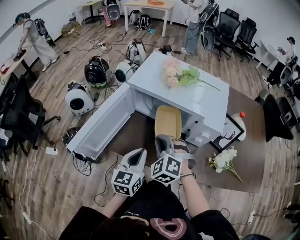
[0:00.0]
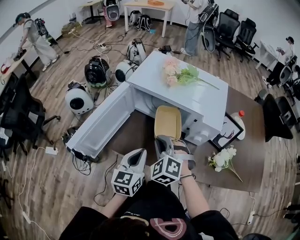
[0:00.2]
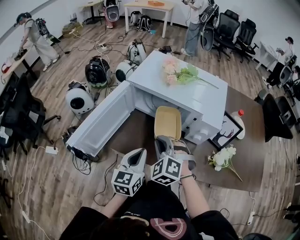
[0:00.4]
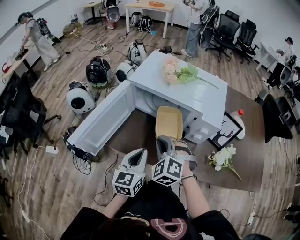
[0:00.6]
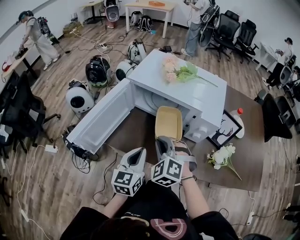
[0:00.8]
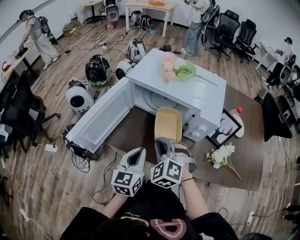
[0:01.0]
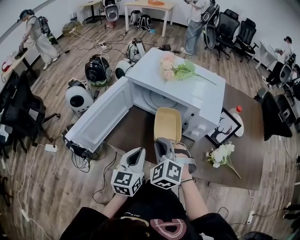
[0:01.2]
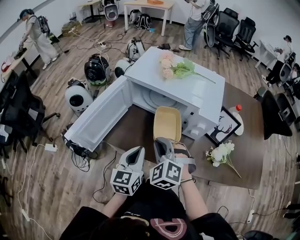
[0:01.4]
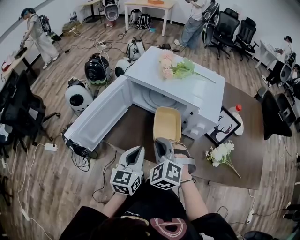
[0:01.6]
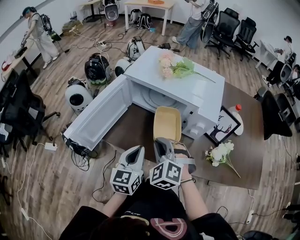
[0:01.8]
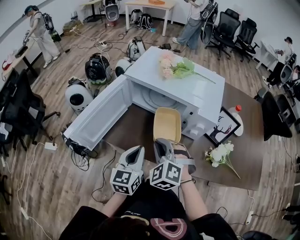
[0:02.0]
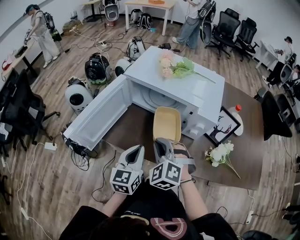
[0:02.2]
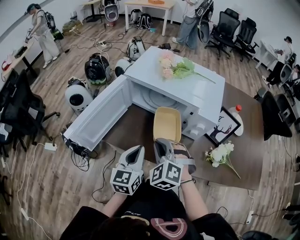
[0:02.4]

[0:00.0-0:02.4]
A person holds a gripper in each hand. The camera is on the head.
0:00.0 to 0:01.2: The right gripper goes roughly 5 cm backward.
0:01.2 to 0:02.4: The two grippers keep their place.

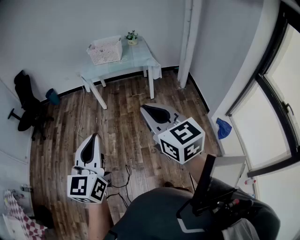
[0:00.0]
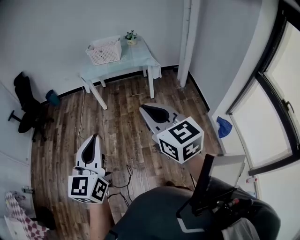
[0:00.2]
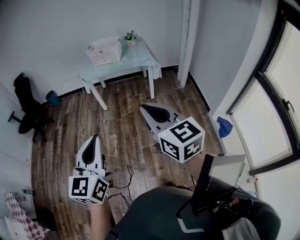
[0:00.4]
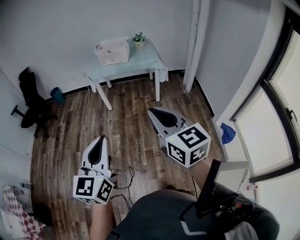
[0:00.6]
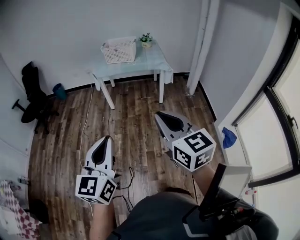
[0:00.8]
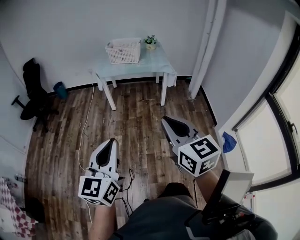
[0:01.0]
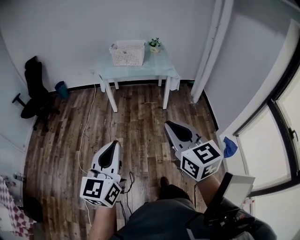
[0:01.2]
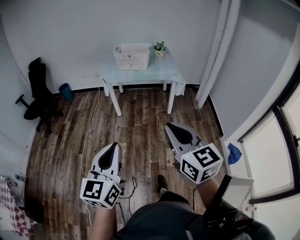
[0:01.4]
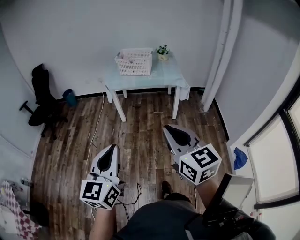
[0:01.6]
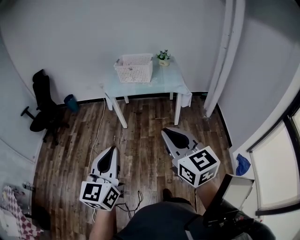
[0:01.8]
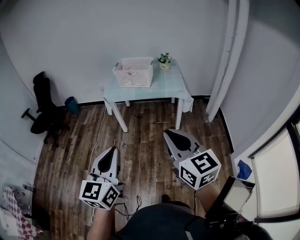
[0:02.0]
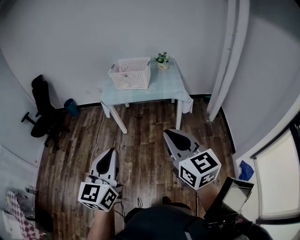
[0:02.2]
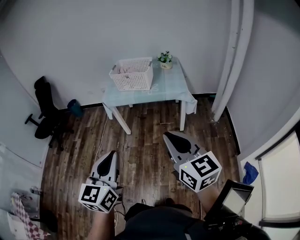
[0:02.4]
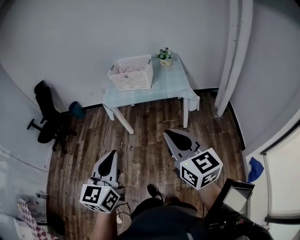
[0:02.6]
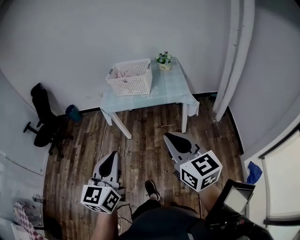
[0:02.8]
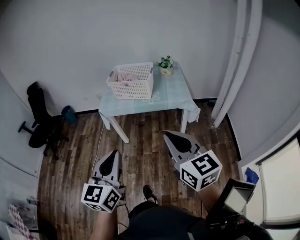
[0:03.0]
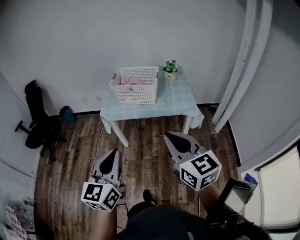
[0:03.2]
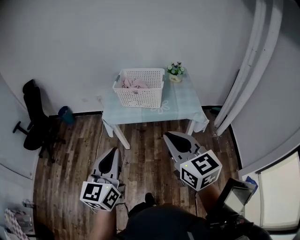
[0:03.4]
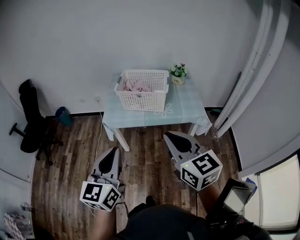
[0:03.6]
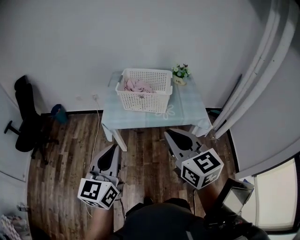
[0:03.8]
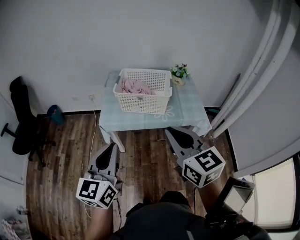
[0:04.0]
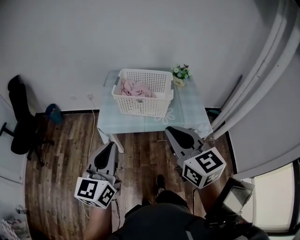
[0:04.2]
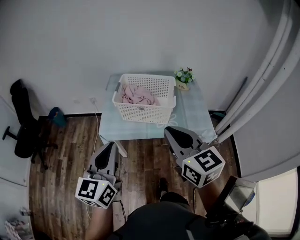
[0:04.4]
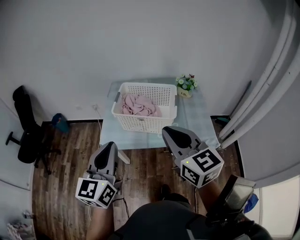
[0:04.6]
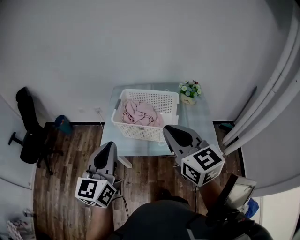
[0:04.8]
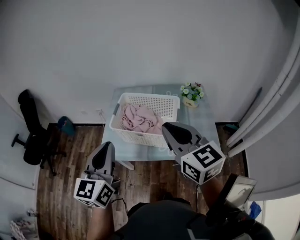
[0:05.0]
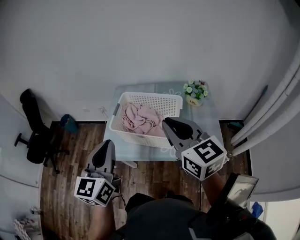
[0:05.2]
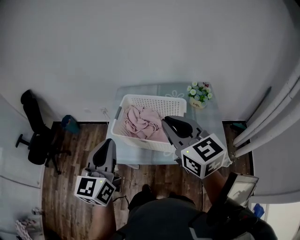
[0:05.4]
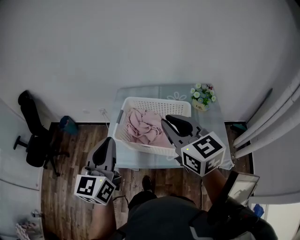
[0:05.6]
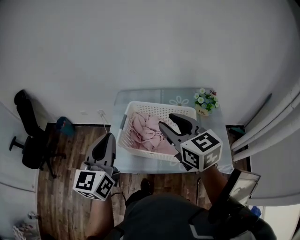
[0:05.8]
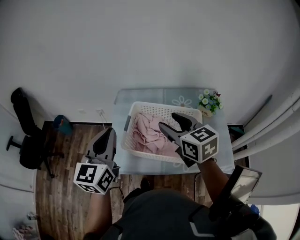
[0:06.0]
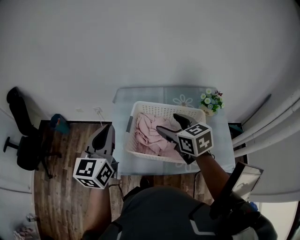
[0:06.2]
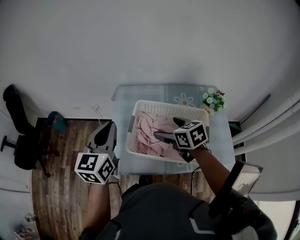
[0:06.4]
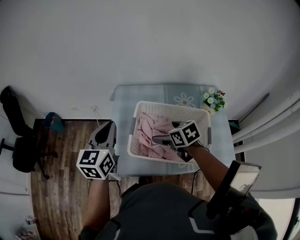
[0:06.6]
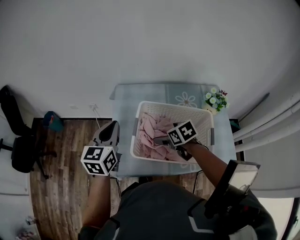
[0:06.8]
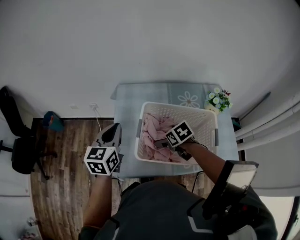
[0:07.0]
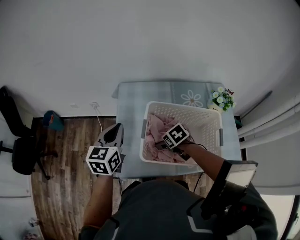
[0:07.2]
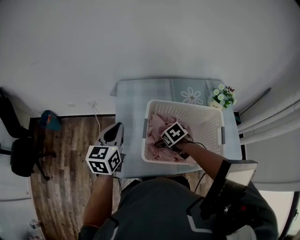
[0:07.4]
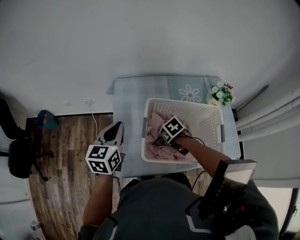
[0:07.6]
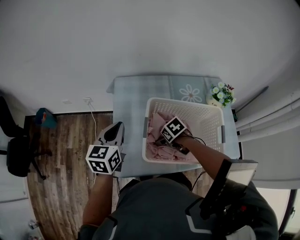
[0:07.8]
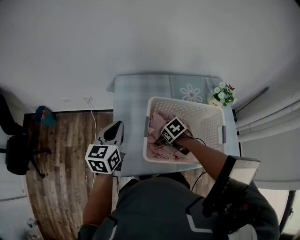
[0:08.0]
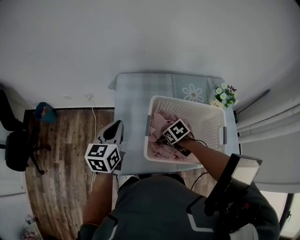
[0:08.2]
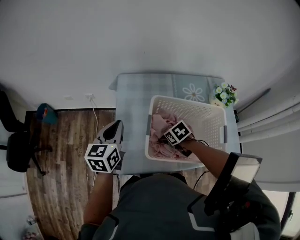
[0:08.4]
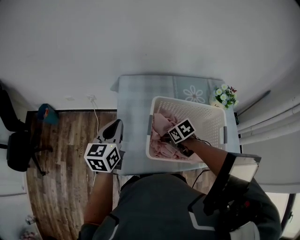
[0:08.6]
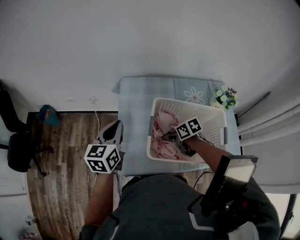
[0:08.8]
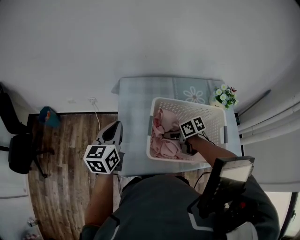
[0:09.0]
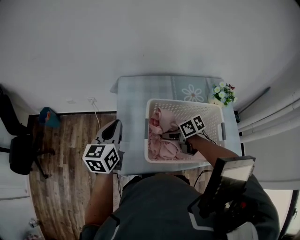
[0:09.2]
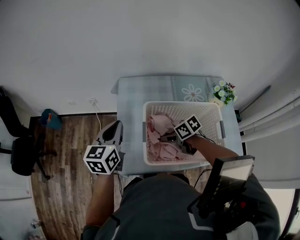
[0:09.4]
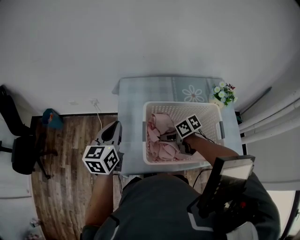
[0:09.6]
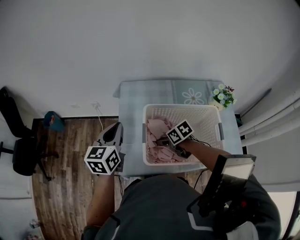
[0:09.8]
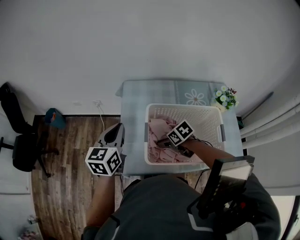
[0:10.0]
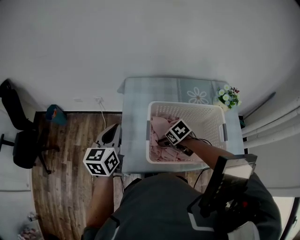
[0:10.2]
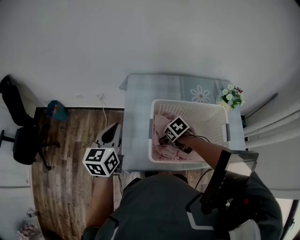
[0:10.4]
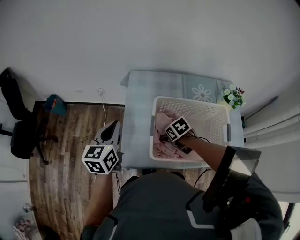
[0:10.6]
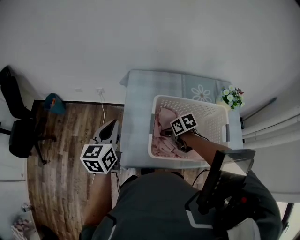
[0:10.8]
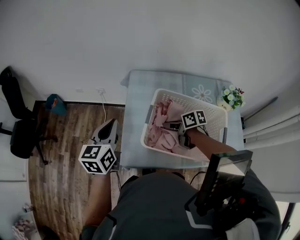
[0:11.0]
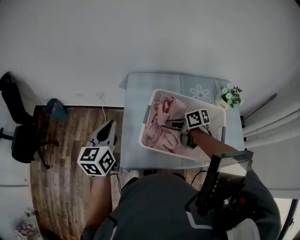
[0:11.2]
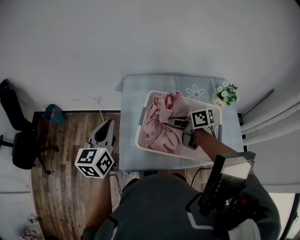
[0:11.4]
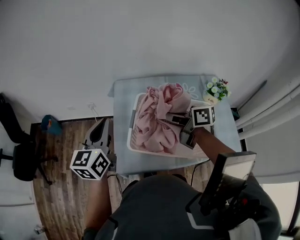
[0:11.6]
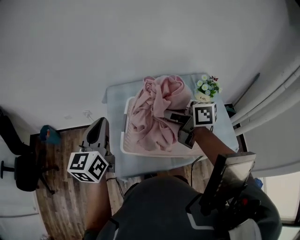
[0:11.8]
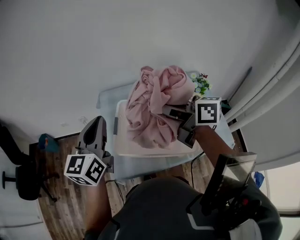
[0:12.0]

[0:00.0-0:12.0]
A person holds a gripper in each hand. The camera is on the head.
0:00.0 to 0:01.6: Both grippers move forward and to the left, roughly 15 cm.
0:01.6 to 0:03.0: Both grippers move forward, approximately 30 cm.
0:03.0 to 0:04.4: Both grippers move forward, roughly 35 cm.
0:04.4 to 0:06.0: The two grippers go about 35 cm forward. The right gripper opens up.
0:06.0 to 0:07.6: The right gripper is displaced downward by about 30 cm, tips its fingers downward by some 50 degrees, and opens. Meanwhile the left gripper travels downward and forward by approximately 25 cm, and rotates roughly 20 degrees.
0:07.6 to 0:09.0: The right gripper angles its fingers upward, by some 30 degrees, and closes.
0:09.0 to 0:10.4: The right gripper ends up approximately 5 cm from where it was, swivels approximately 40 degrees, and opens.
0:10.4 to 0:12.0: The right gripper heads upward, covering some 35 cm, tips its fingers upward by some 70 degrees, and closes up. The left gripper goes approximately 15 cm upward and to the right.

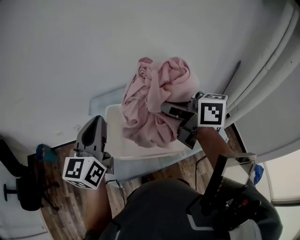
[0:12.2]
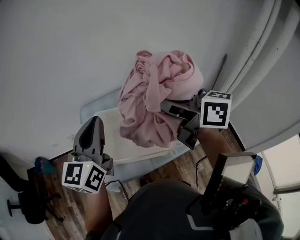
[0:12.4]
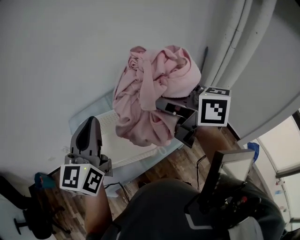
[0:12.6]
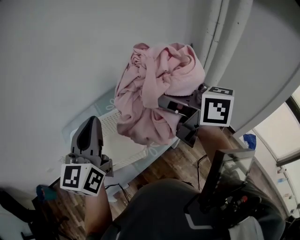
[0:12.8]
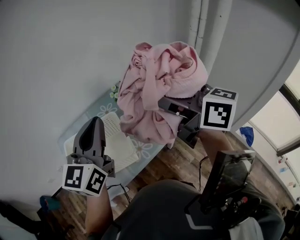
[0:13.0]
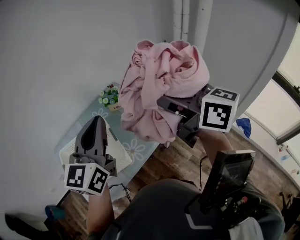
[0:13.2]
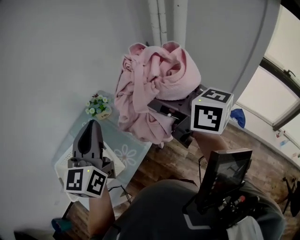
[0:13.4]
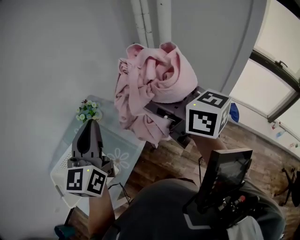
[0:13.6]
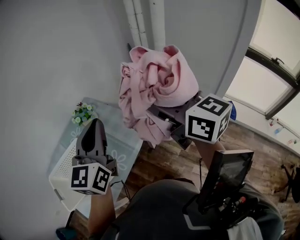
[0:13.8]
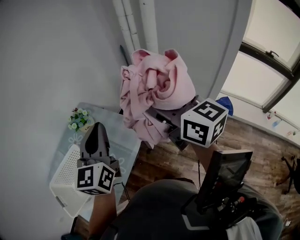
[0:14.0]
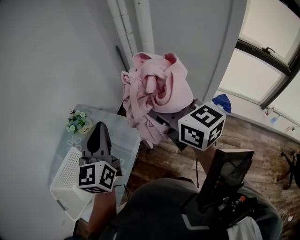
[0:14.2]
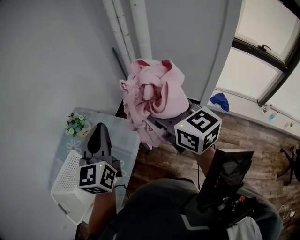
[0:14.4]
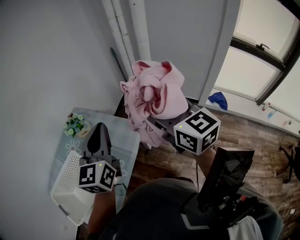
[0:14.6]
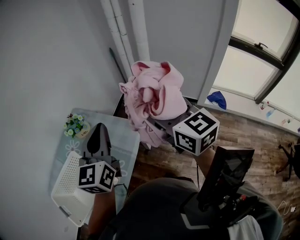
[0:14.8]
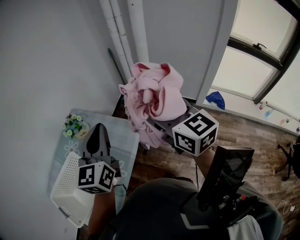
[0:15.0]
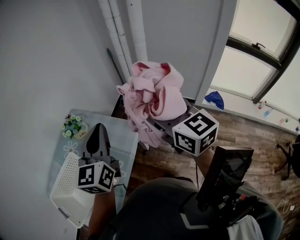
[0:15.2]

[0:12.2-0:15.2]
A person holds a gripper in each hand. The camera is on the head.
0:12.2 to 0:13.8: The right gripper goes downward and returns, about 15 cm each way, and swivels some 40 degrees; the left gripper travels downward and back again, some 15 cm each way, and changes its angle by about 20 degrees.
0:13.8 to 0:15.2: The left gripper changes place by roughly 5 cm. Meanwhile the right gripper heads downward, covering approximately 5 cm.

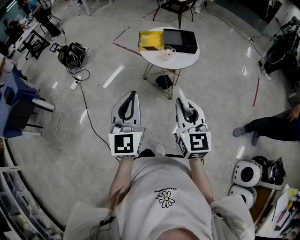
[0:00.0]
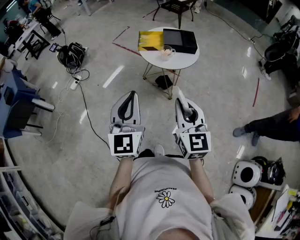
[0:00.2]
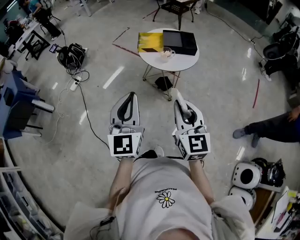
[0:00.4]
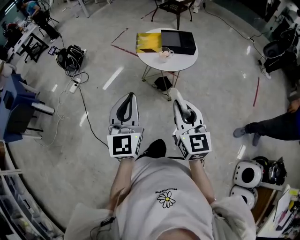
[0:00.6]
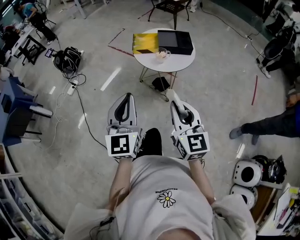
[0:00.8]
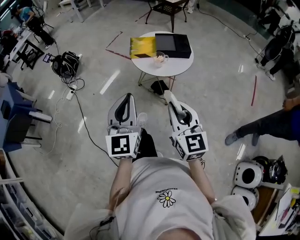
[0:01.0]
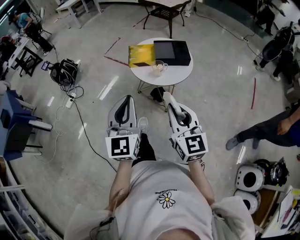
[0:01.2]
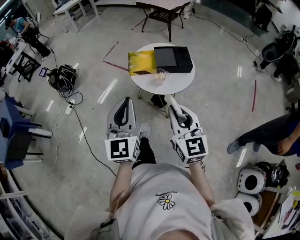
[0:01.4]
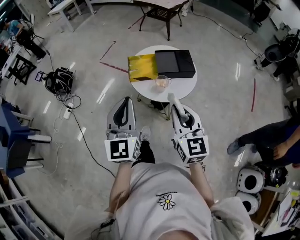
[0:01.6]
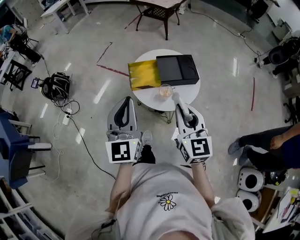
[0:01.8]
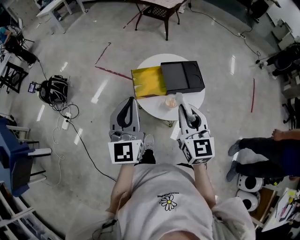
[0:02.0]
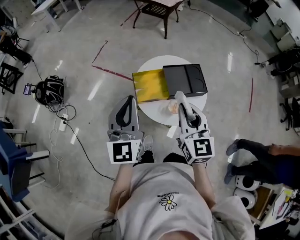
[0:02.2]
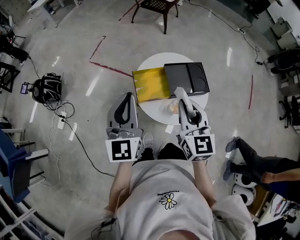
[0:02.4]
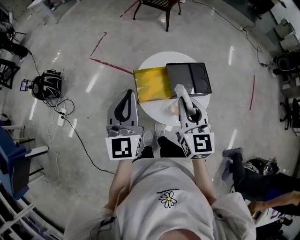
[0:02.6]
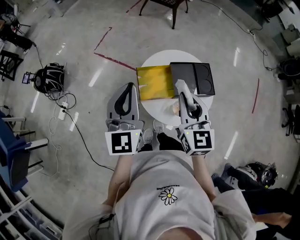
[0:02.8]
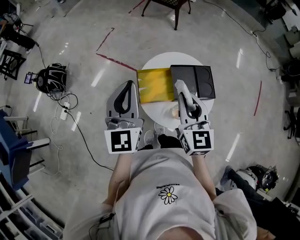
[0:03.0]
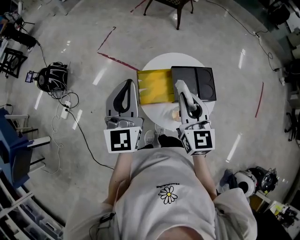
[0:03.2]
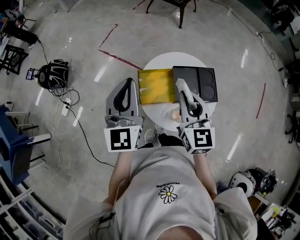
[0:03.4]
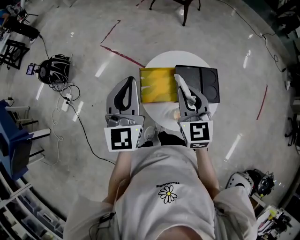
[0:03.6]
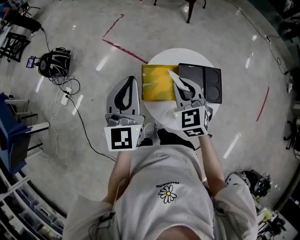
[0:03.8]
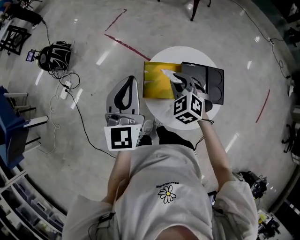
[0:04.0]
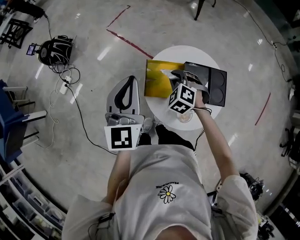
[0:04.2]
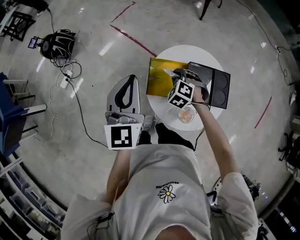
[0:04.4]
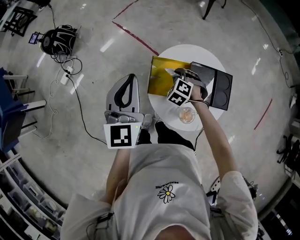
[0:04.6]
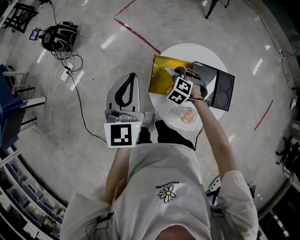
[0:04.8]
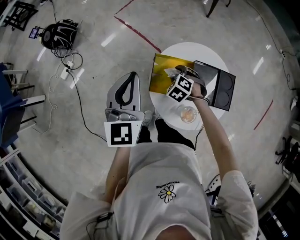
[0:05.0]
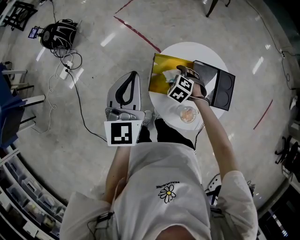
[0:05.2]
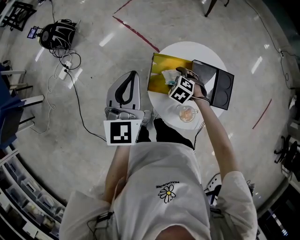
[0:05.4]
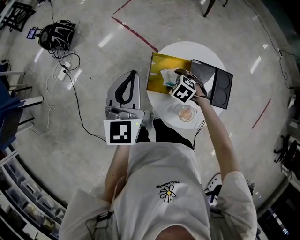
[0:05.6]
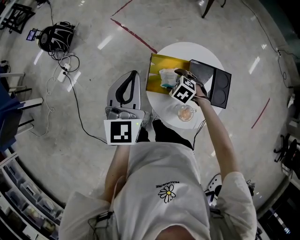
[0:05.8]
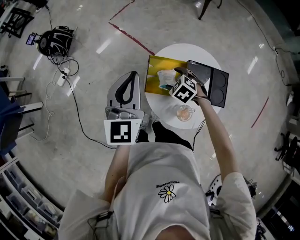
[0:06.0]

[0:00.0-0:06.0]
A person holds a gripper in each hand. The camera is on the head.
0:00.0 to 0:01.6: The grippers both shift forward by approximately 25 cm.
0:01.6 to 0:03.0: The grippers both shift forward by about 30 cm.
0:03.0 to 0:04.4: The left gripper heads downward, covering approximately 5 cm, while the right gripper moves downward and forward, roughly 30 cm, and tips its fingers downward by approximately 50 degrees.
0:04.4 to 0:06.0: The right gripper rotates roughly 20 degrees, and opens its fingers.
